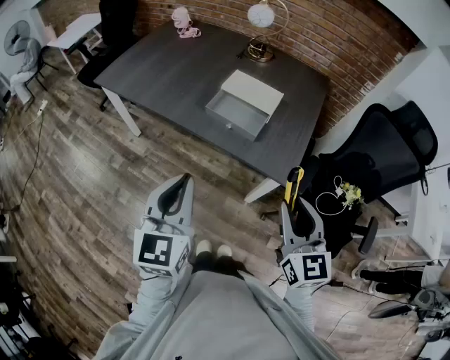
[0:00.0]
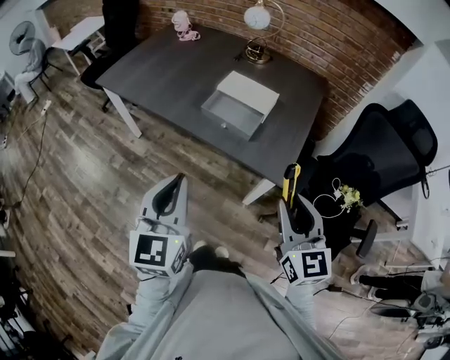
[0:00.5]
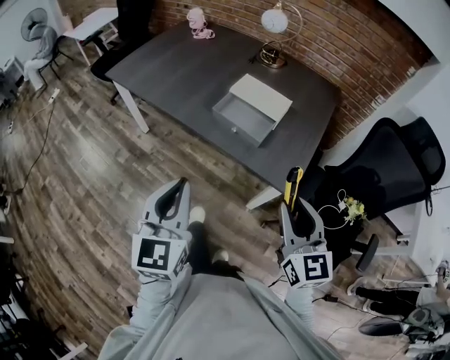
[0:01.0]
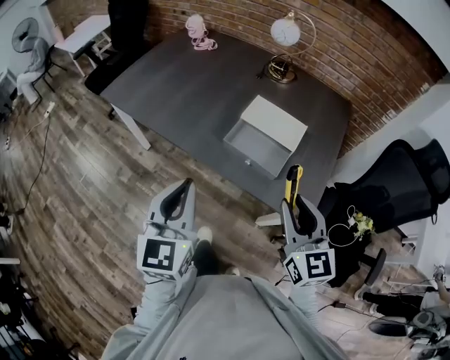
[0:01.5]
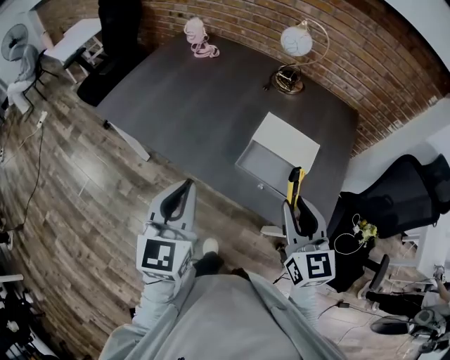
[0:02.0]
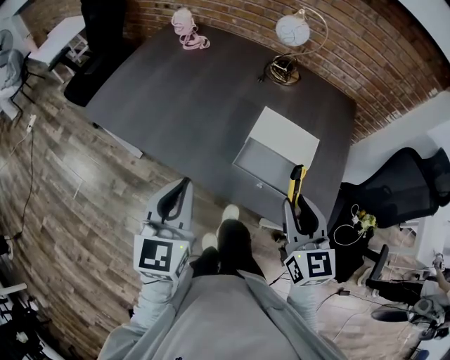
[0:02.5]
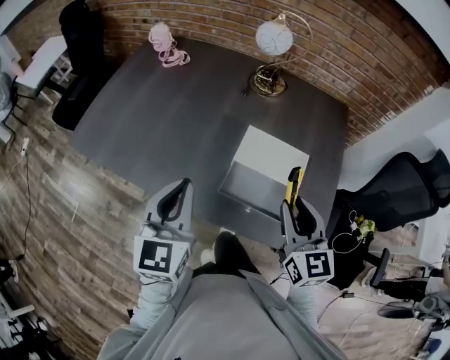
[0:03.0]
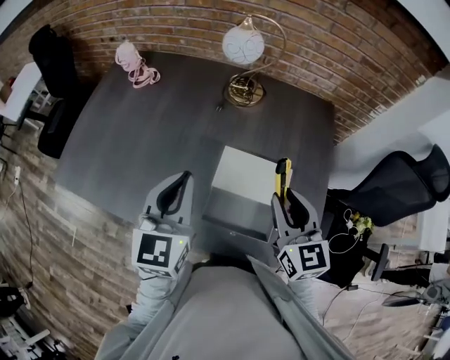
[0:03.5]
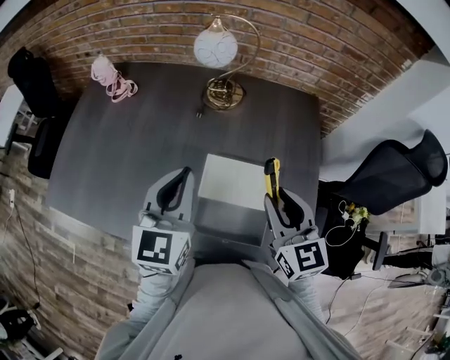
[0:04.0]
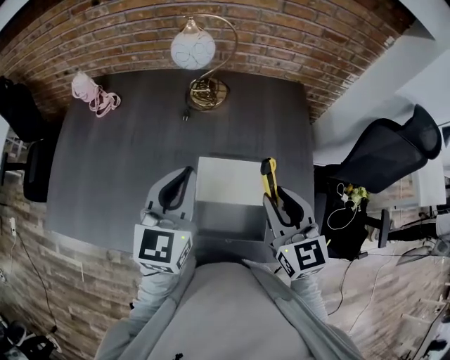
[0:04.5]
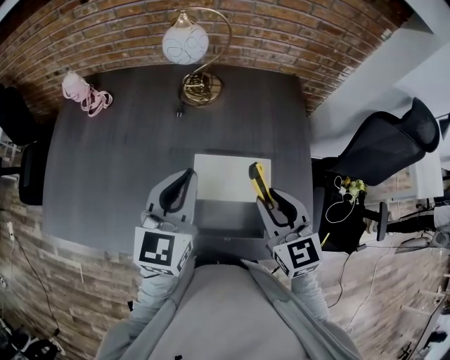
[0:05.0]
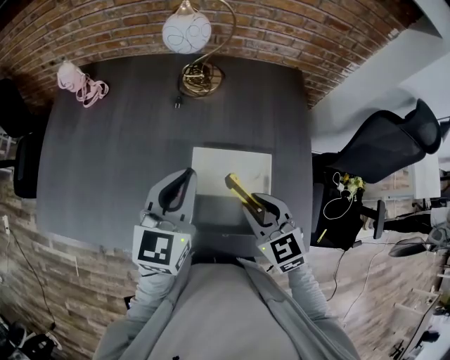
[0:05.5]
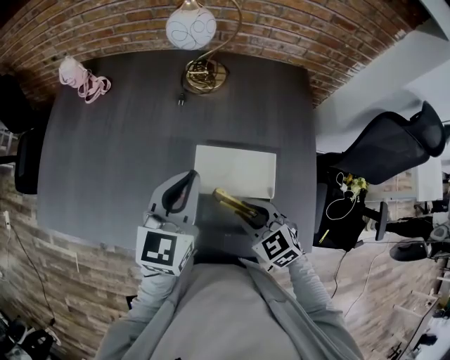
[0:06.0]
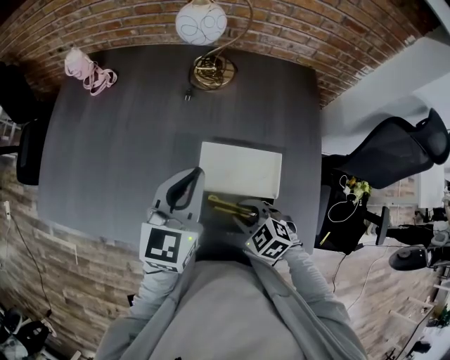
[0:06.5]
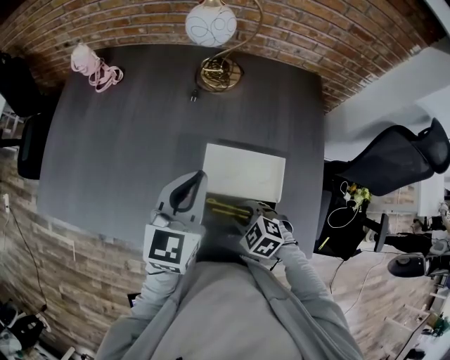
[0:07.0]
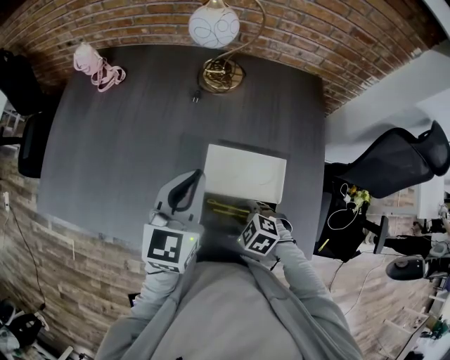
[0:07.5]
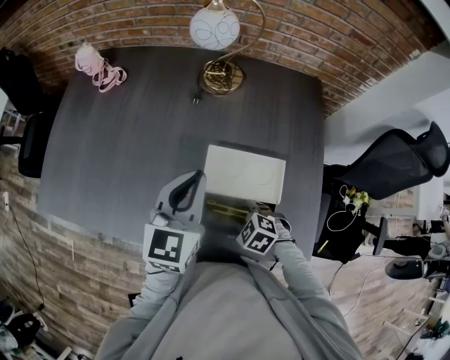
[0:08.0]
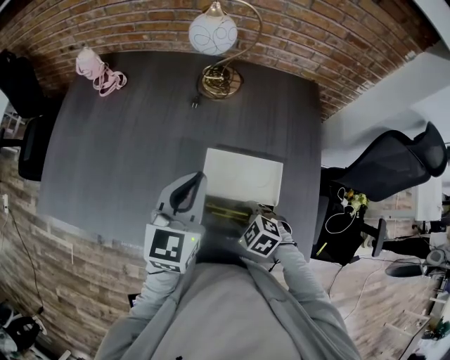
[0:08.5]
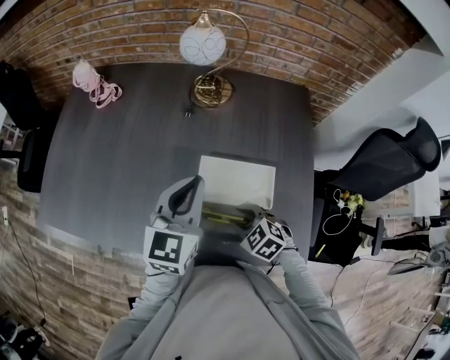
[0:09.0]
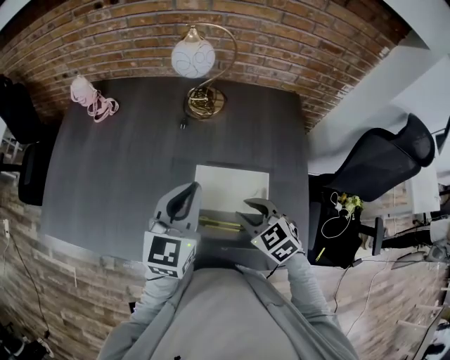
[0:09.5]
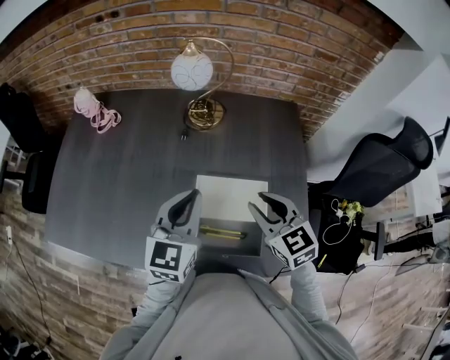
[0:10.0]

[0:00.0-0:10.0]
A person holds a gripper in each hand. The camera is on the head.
0:00.0 to 0:02.0: The grippers both shift forward and to the left by approximately 25 cm.
0:02.0 to 0:04.0: The grippers both shift forward and to the right by roughly 25 cm. The left gripper swivels about 20 degrees.
0:04.0 to 0:06.0: The right gripper goes some 15 cm downward, and turns by roughly 30 degrees. Meanwhile the left gripper goes some 5 cm downward.
0:06.0 to 0:08.0: The right gripper travels downward by roughly 10 cm, and changes its angle by about 30 degrees.
0:08.0 to 0:10.0: The right gripper shifts approximately 20 cm upward, and tips its fingers upward by about 40 degrees.

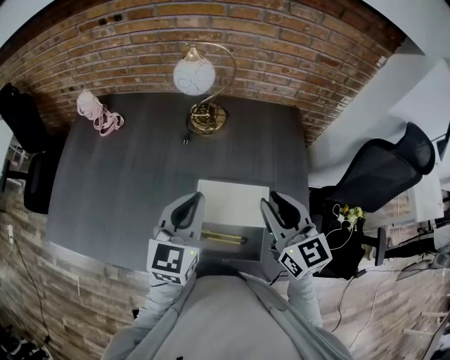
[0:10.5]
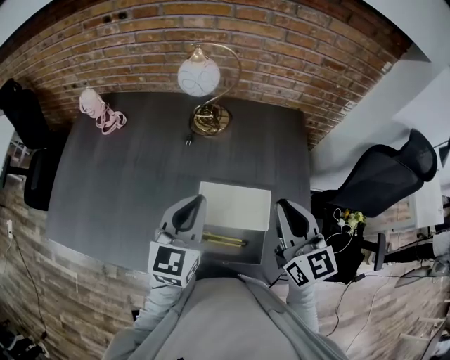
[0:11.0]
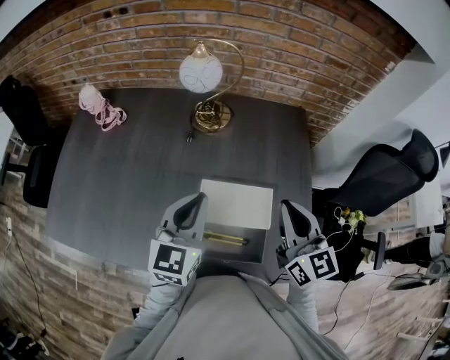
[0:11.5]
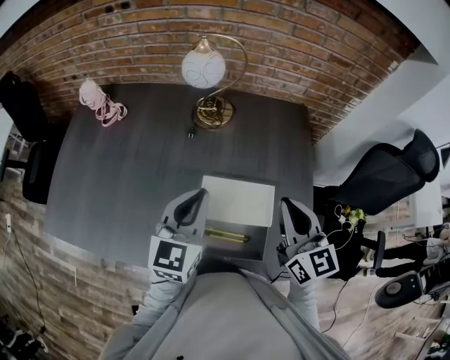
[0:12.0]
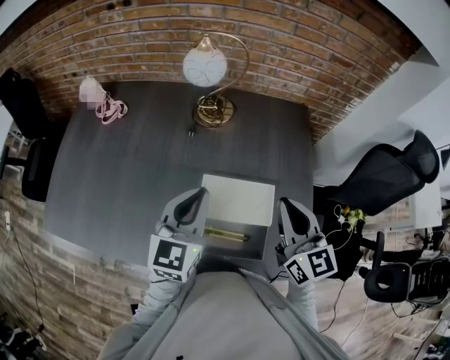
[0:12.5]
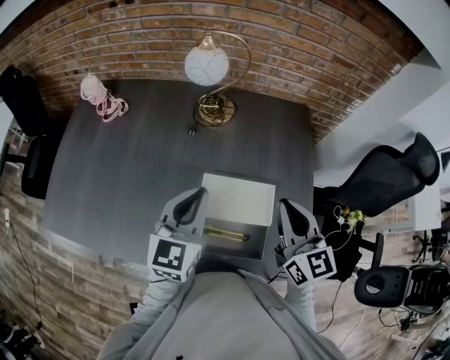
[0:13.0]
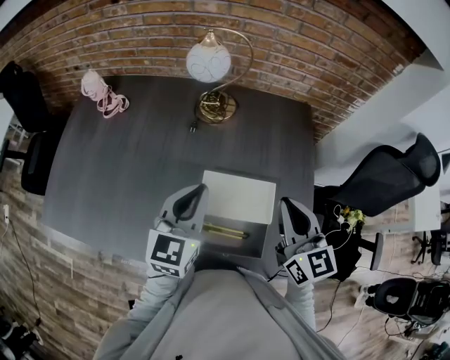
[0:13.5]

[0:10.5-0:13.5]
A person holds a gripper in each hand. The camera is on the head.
0:10.5 to 0:12.0: The right gripper closes.
0:12.0 to 0:13.5: The two grippers keep their place.

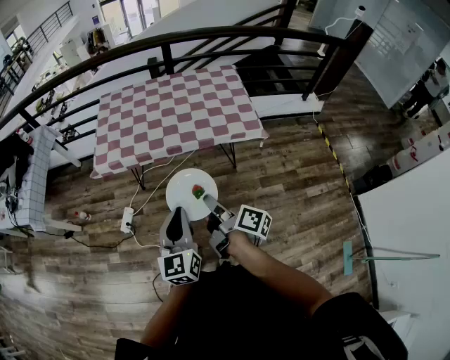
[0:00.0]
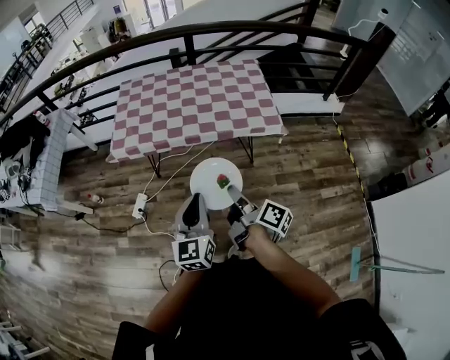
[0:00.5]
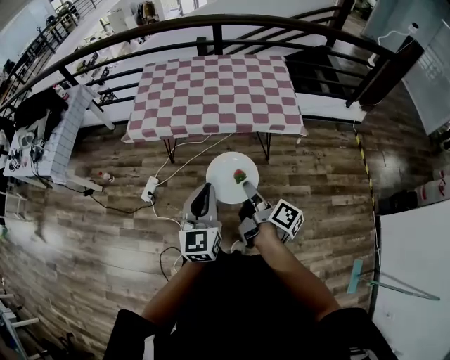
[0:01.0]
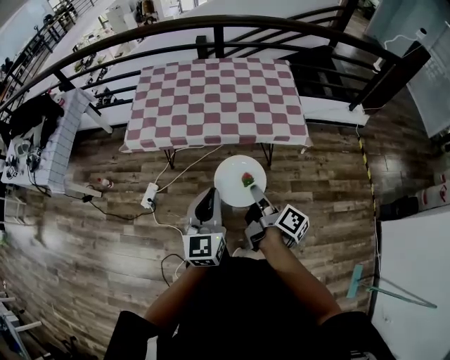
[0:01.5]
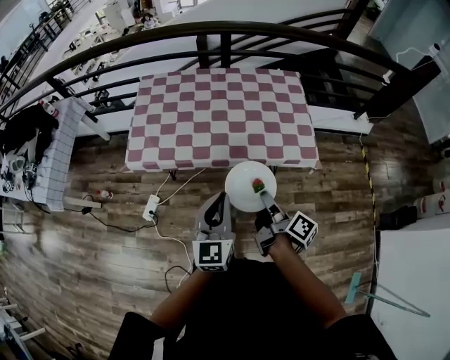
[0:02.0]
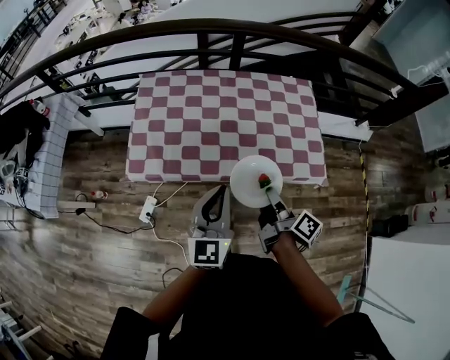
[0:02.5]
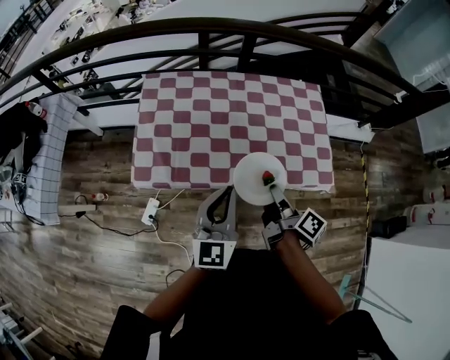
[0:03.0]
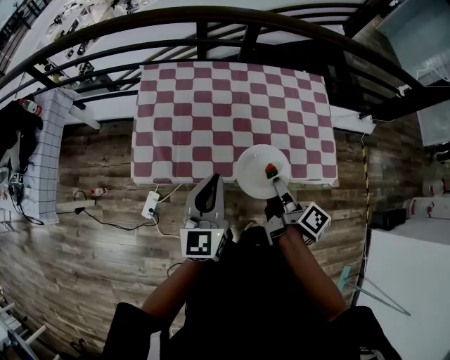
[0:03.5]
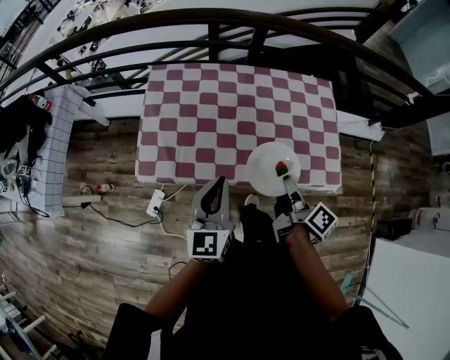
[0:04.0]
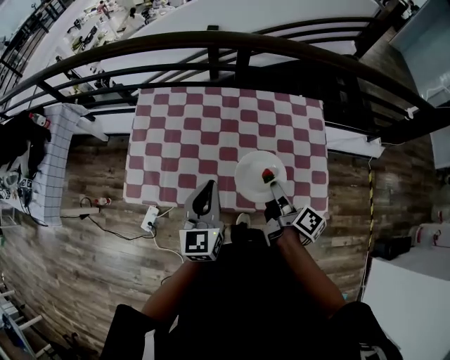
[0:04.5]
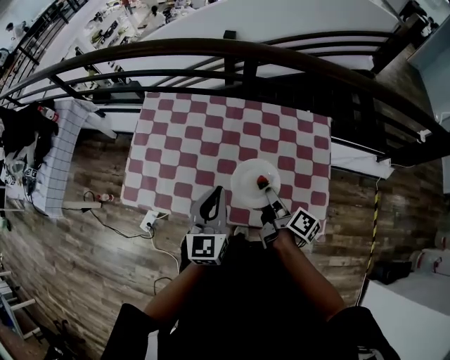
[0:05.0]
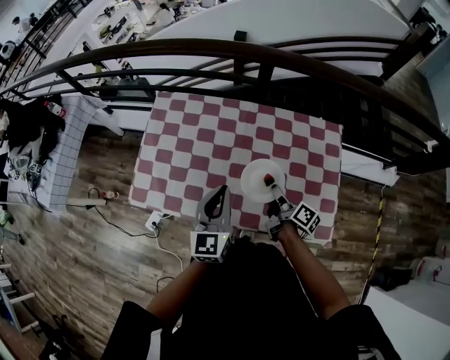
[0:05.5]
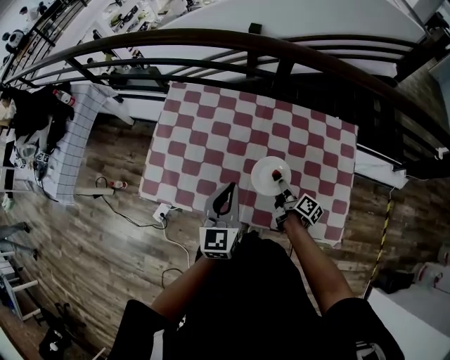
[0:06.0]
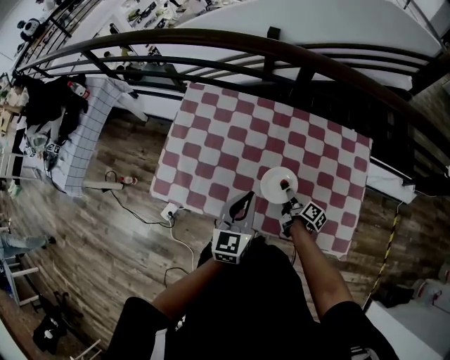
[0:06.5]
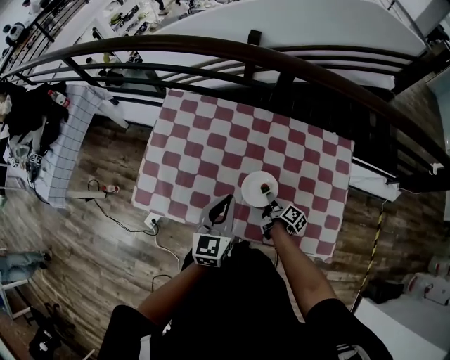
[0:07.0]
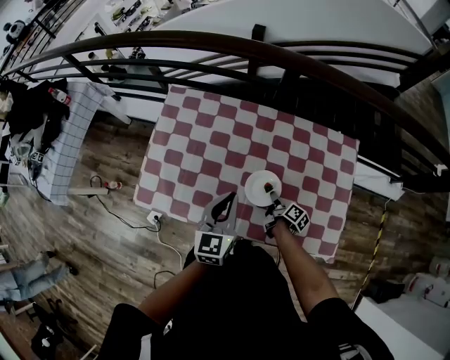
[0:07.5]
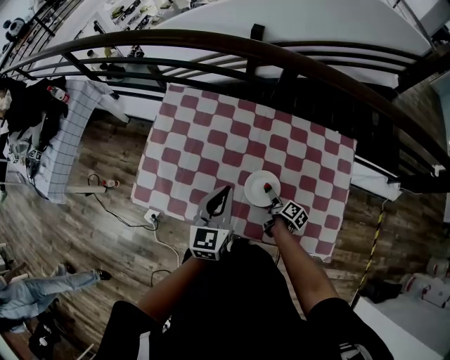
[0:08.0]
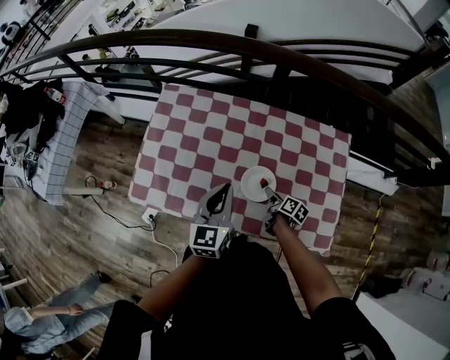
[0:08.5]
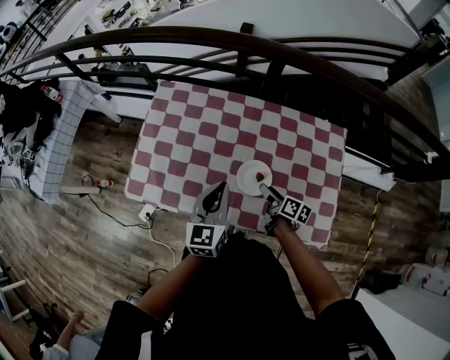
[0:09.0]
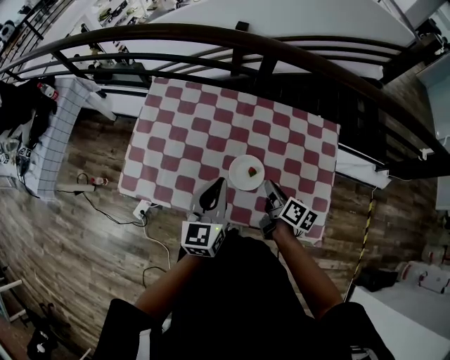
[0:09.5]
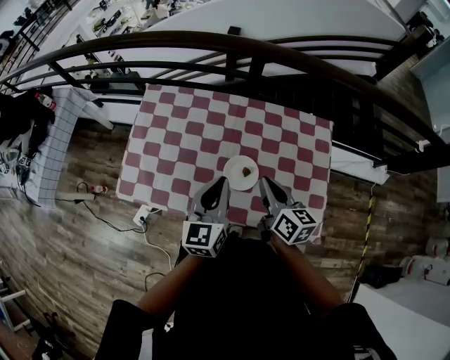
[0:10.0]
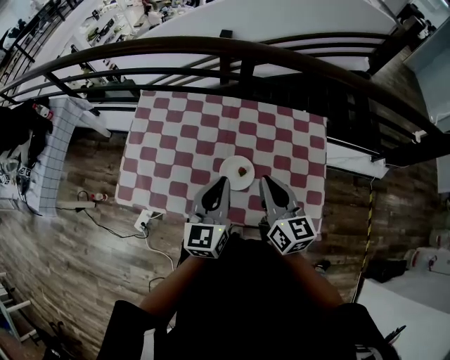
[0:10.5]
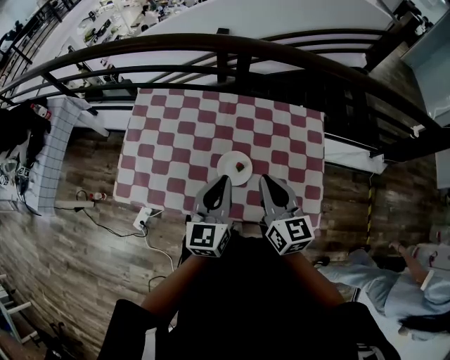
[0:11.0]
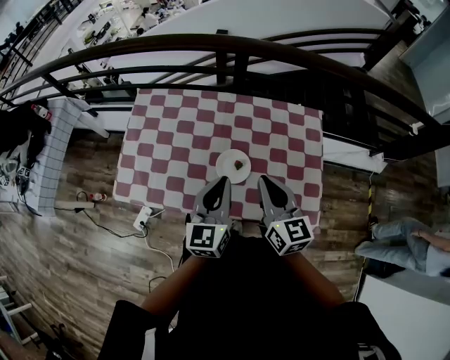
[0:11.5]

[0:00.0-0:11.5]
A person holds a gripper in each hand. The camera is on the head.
0:00.0 to 0:02.0: The grippers both shift forward by some 20 cm.
0:02.0 to 0:04.0: The right gripper heads forward, covering some 20 cm; the left gripper travels forward and to the left by approximately 25 cm.
0:04.0 to 0:06.0: The right gripper goes some 25 cm forward and downward; the left gripper travels forward and to the right by about 15 cm.
0:06.0 to 0:07.5: The right gripper travels downward by about 10 cm.
0:07.5 to 0:09.5: The left gripper shifts by about 5 cm. Meanwhile the right gripper travels upward by roughly 20 cm, changes its angle by about 20 degrees, and opens and closes again.
0:09.5 to 0:11.5: The left gripper shifts roughly 5 cm to the right; the right gripper shifts roughly 15 cm upward, and rolls counterclockwise, seen from behind, by about 40 degrees.

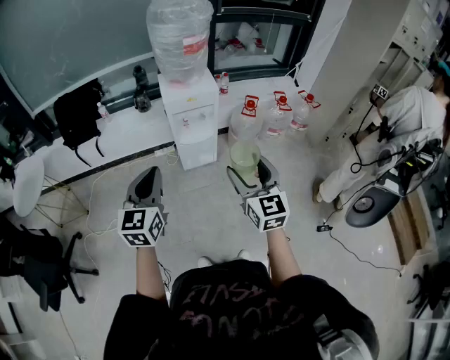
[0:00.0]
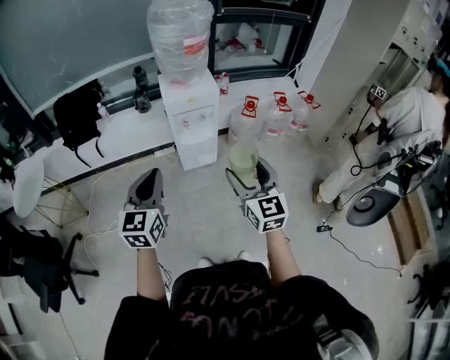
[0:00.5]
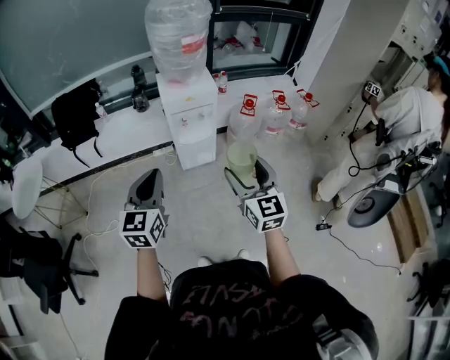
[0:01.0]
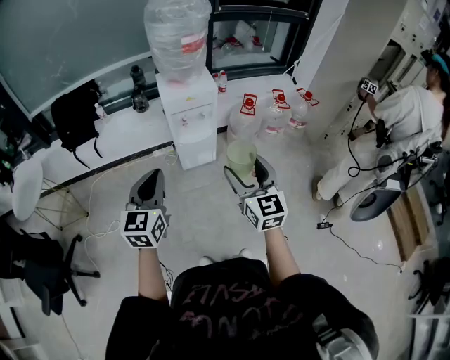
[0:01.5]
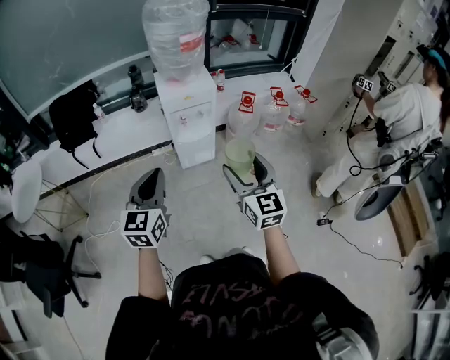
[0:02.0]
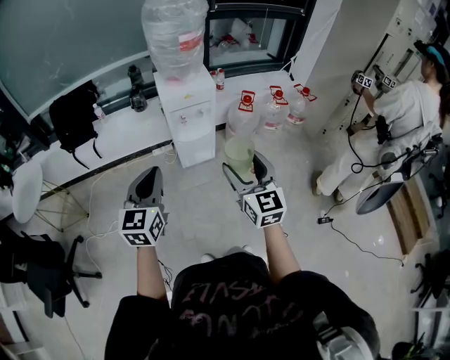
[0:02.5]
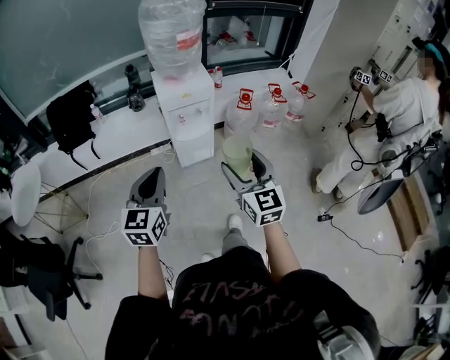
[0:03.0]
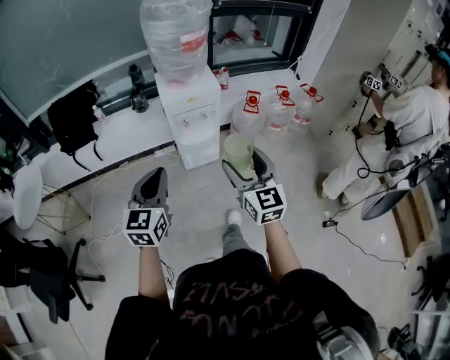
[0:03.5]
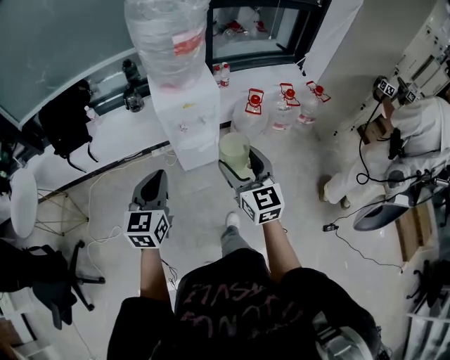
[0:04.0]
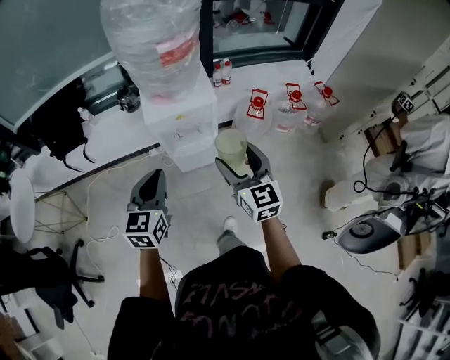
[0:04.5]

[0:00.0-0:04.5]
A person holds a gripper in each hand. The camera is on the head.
0:00.0 to 0:02.0: There are only small adjustments of the grippers.
0:02.0 to 0:04.5: The two grippers go roughly 30 cm forward.
